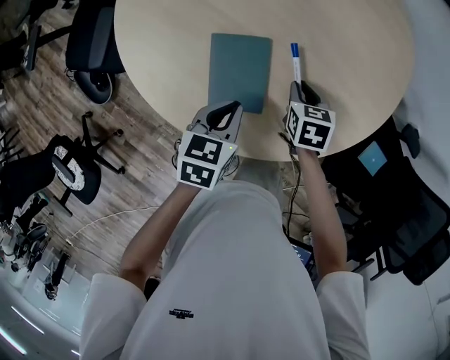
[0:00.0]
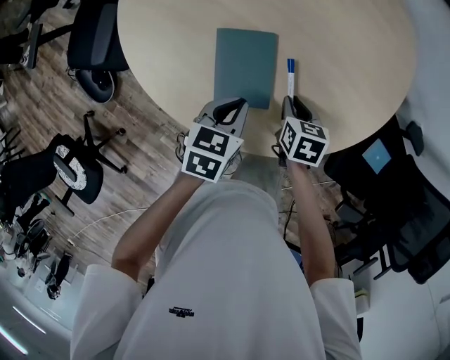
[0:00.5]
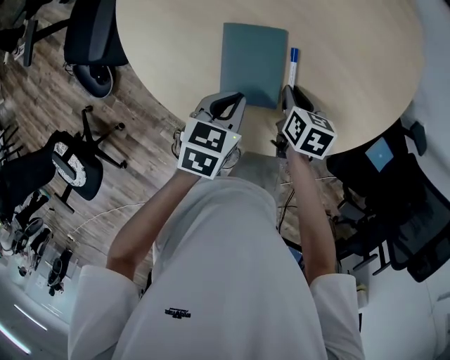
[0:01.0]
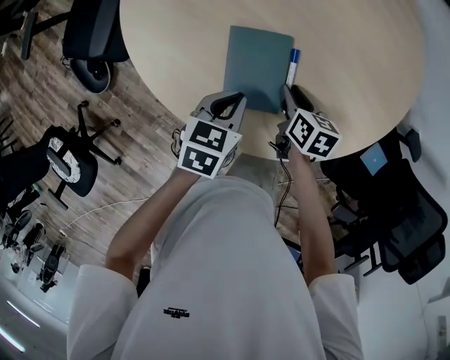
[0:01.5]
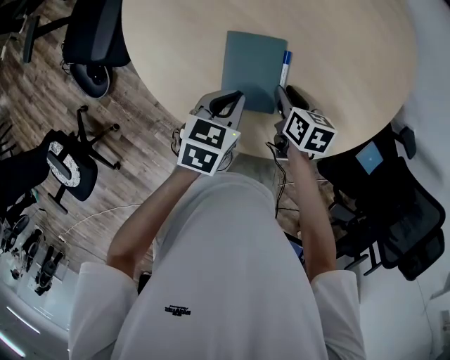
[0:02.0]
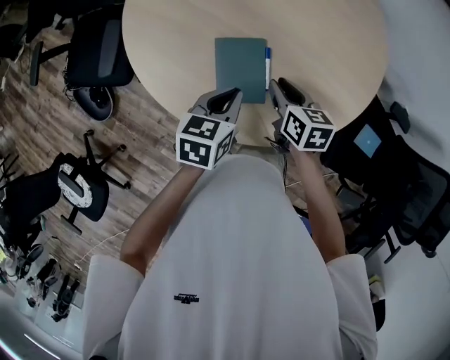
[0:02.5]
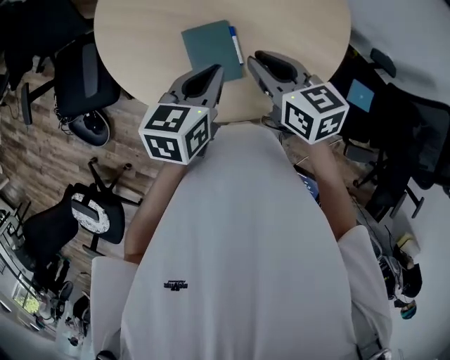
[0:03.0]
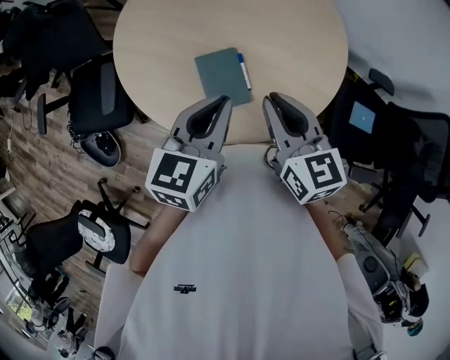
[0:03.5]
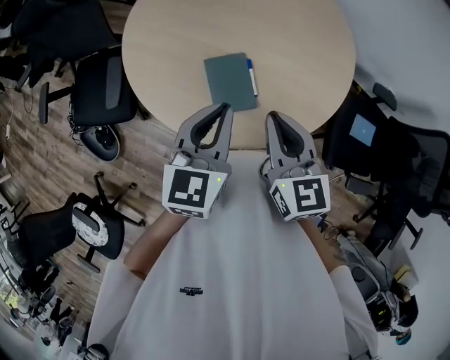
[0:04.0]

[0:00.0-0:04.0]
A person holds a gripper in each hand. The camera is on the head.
0:00.0 to 0:02.0: The right gripper travels to the left by some 10 cm, and swivels approximately 20 degrees. Meanwhile the left gripper heads to the left, covering roughly 5 cm.
0:02.0 to 0:04.0: The two grippers go about 35 cm upward. The right gripper tilts its fingers approximately 30 degrees upward. Meanwhile the left gripper rotates about 30 degrees.

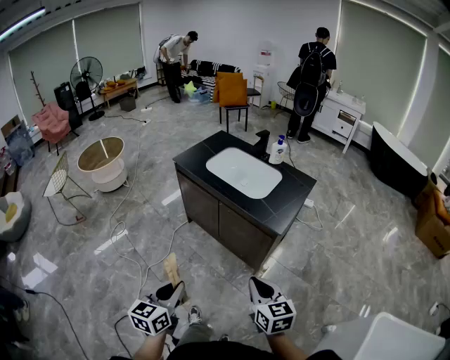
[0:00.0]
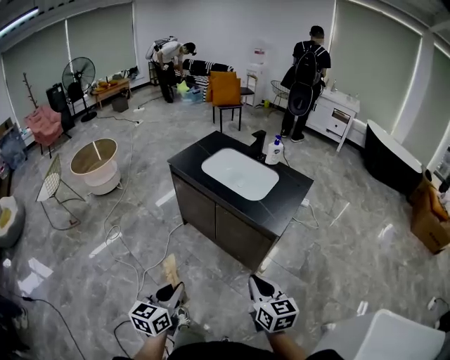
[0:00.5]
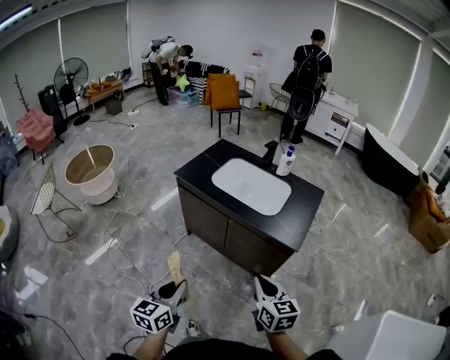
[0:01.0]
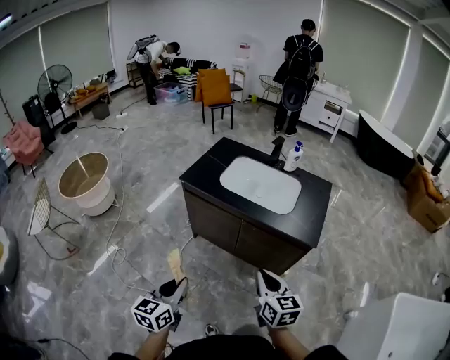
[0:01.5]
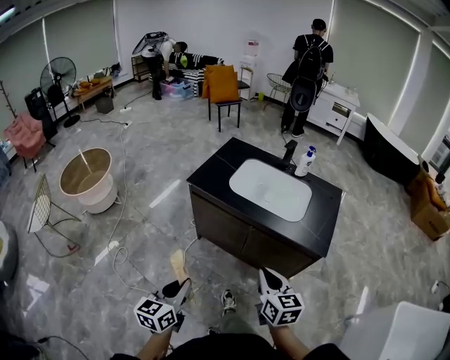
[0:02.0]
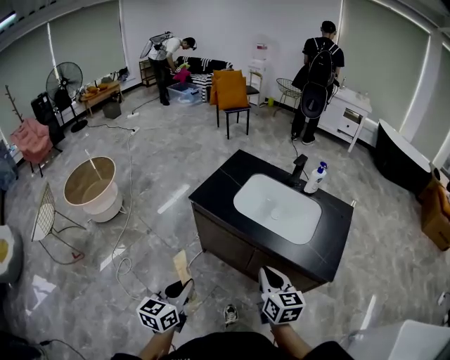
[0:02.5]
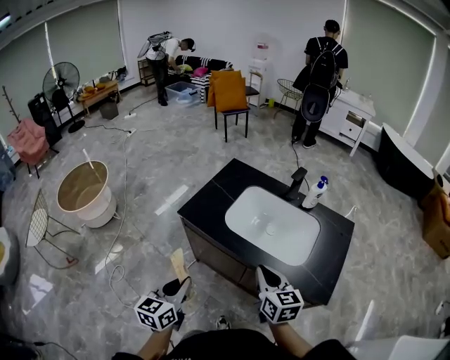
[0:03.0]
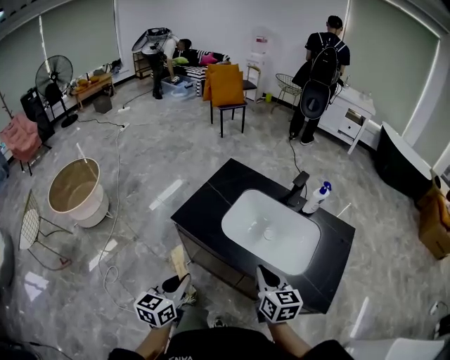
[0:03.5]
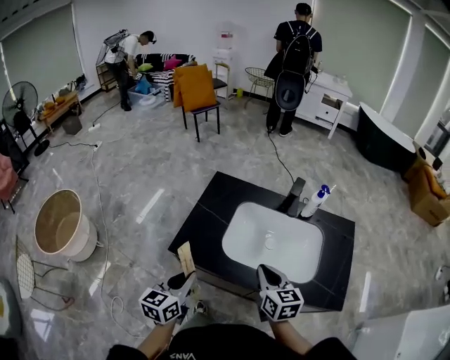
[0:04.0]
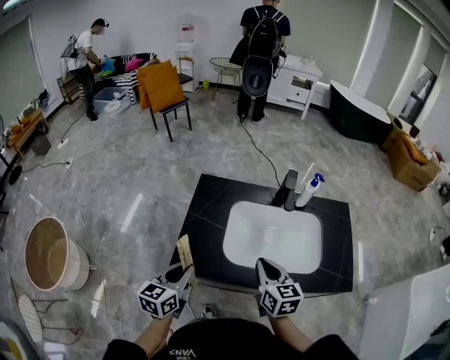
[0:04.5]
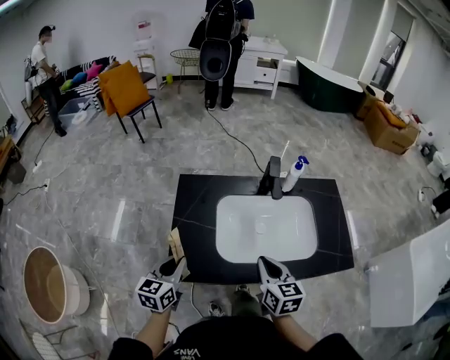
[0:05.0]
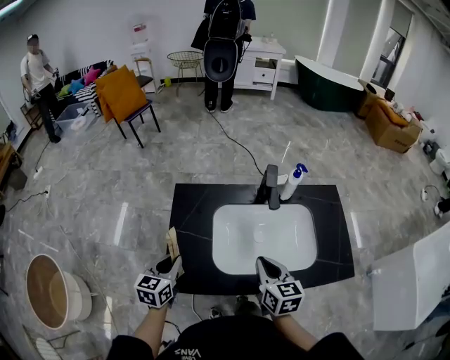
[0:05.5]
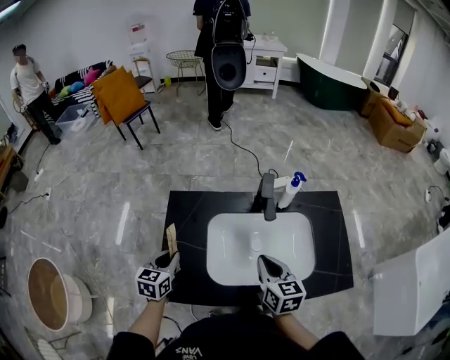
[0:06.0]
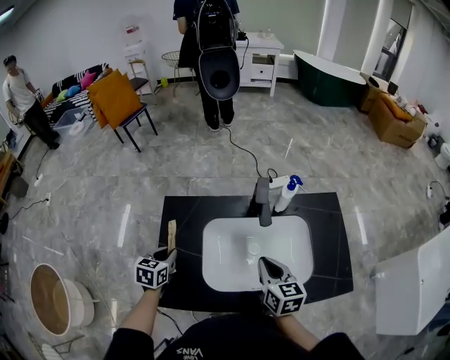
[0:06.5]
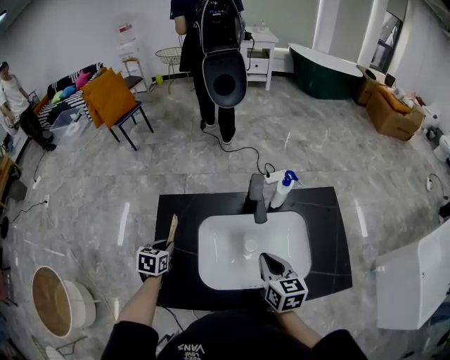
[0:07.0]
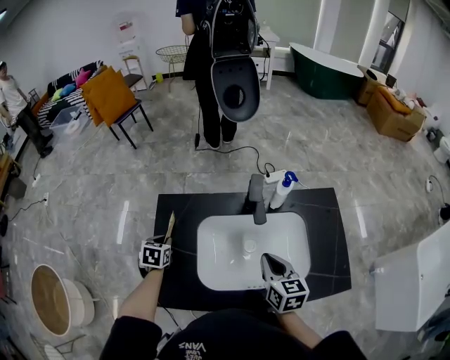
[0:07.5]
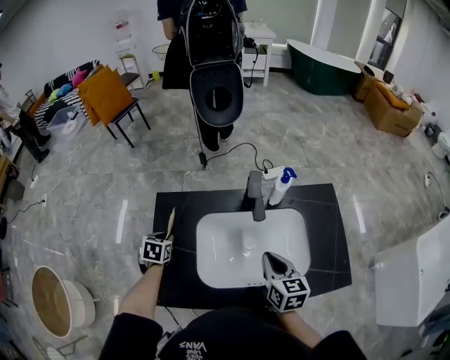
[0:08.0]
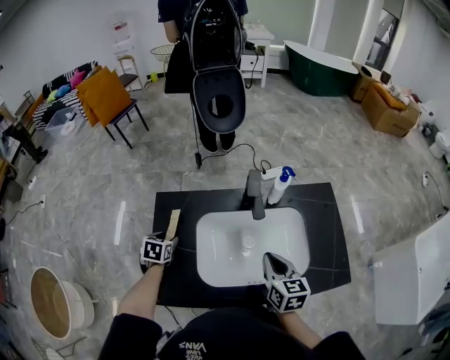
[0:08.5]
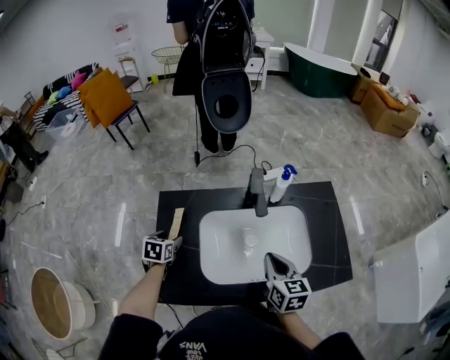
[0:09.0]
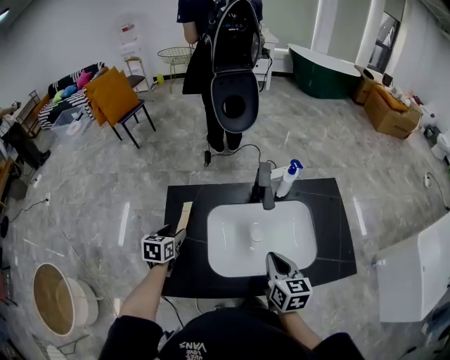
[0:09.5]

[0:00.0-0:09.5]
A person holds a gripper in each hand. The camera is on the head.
0:00.0 to 0:02.0: The two grippers go about 30 cm to the left and forward.
0:02.0 to 0:04.0: The two grippers go roughly 40 cm forward.
0:04.0 to 0:05.5: The left gripper is displaced forward and to the left by some 20 cm, and changes its angle by some 20 degrees; the right gripper travels forward by roughly 5 cm, and turns by some 20 degrees.
0:05.5 to 0:07.5: The left gripper is displaced forward and downward by some 20 cm, and turns by approximately 30 degrees. Meanwhile the right gripper shifts approximately 10 cm forward and to the right.
0:07.5 to 0:09.5: The left gripper opens, while the right gripper moves backward, some 5 cm.

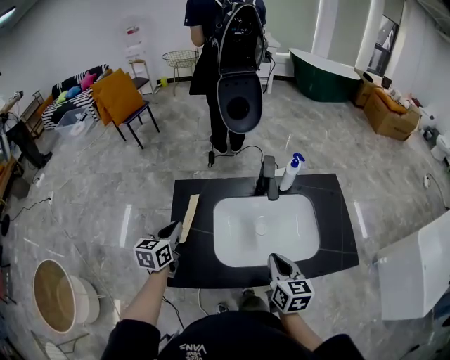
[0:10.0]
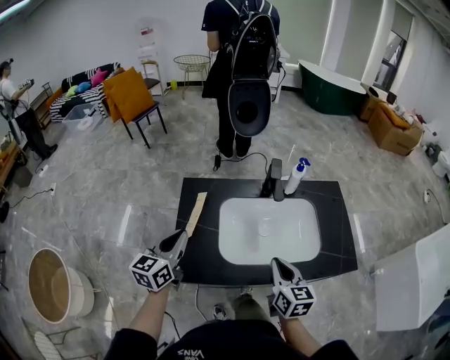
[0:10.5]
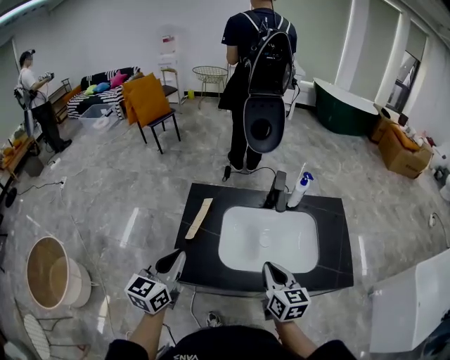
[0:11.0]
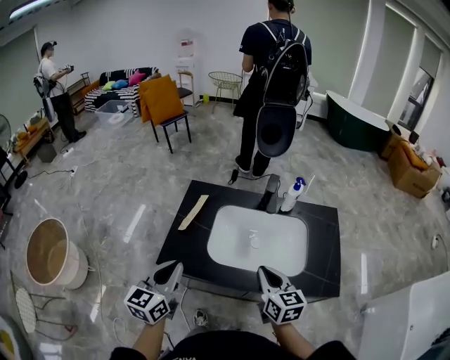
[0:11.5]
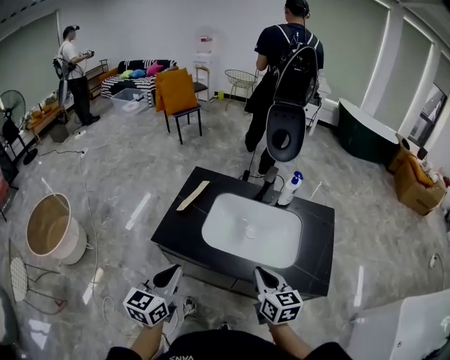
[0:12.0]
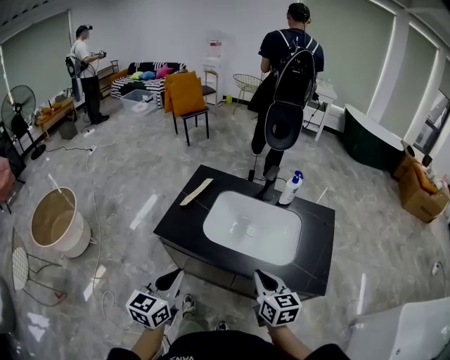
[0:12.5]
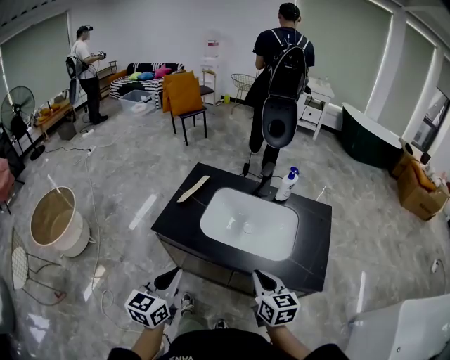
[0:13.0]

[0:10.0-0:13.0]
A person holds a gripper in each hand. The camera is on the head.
0:10.0 to 0:11.5: The right gripper ends up approximately 5 cm from where it was, and turns by roughly 20 degrees. The left gripper travels backward and upward by about 25 cm.
0:11.5 to 0:13.0: Both grippers move backward and to the right, about 15 cm.

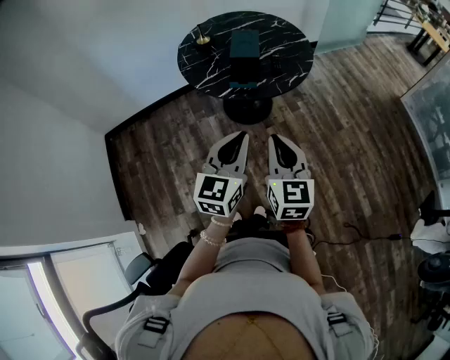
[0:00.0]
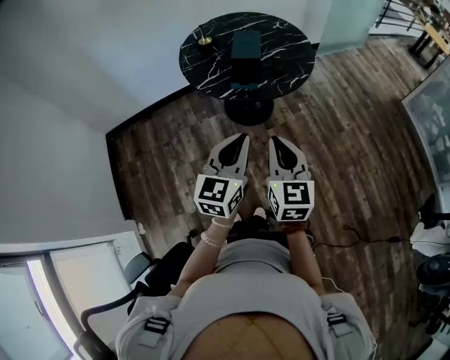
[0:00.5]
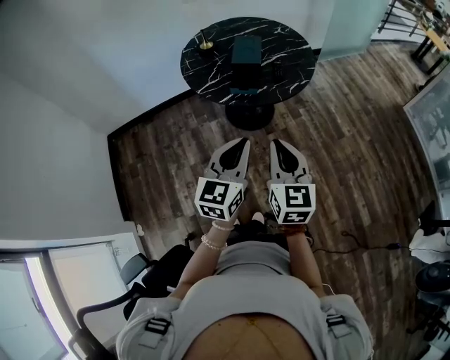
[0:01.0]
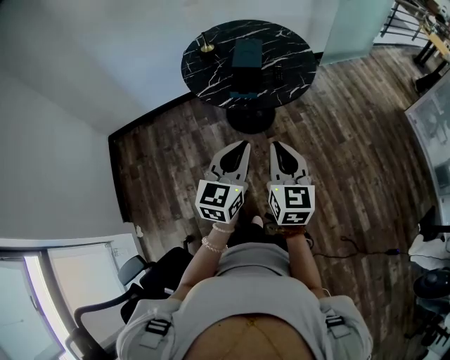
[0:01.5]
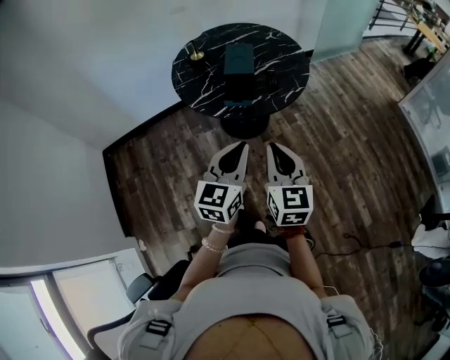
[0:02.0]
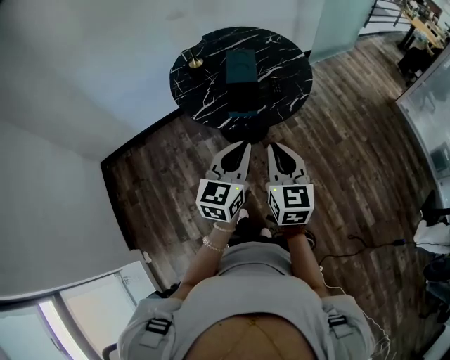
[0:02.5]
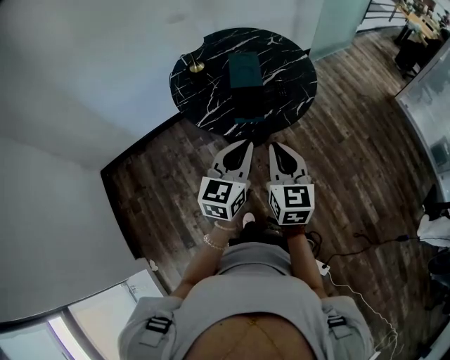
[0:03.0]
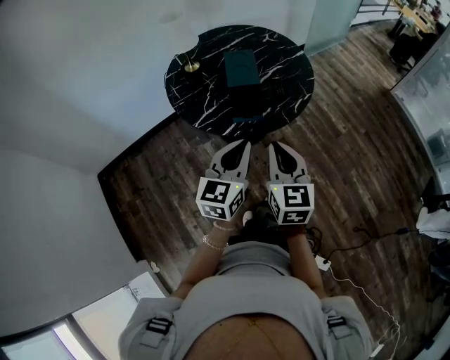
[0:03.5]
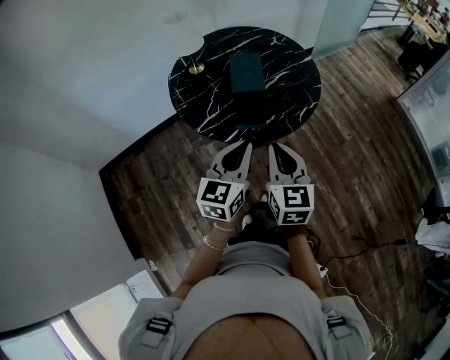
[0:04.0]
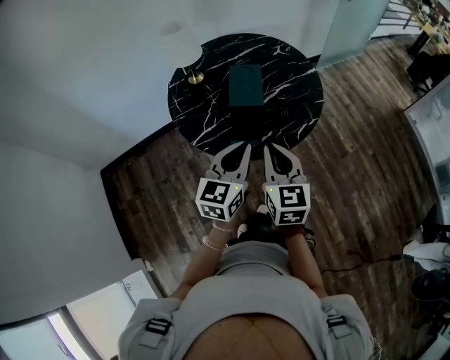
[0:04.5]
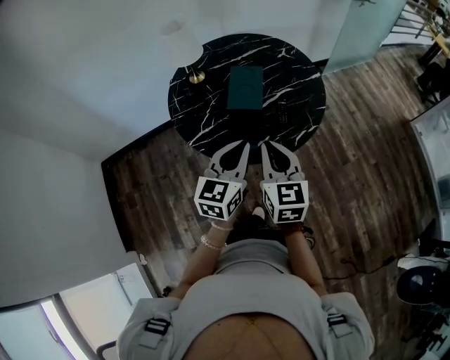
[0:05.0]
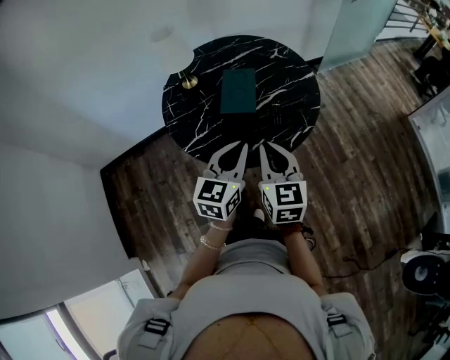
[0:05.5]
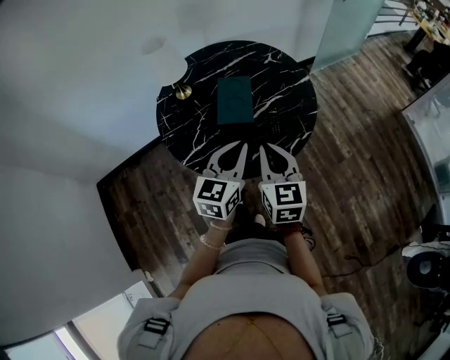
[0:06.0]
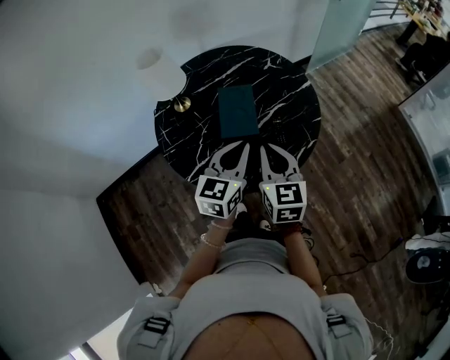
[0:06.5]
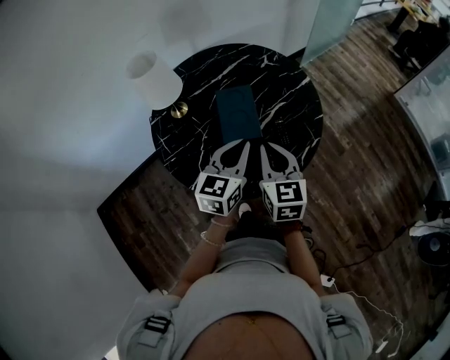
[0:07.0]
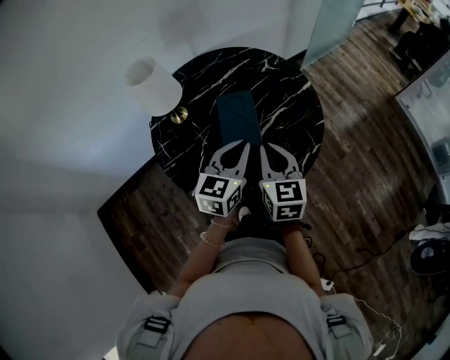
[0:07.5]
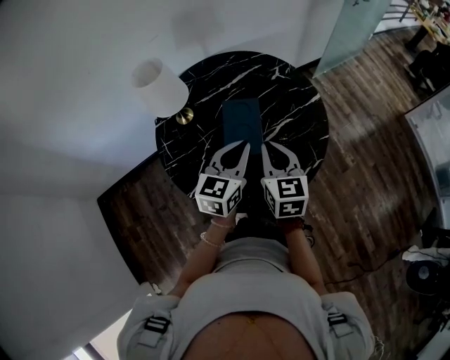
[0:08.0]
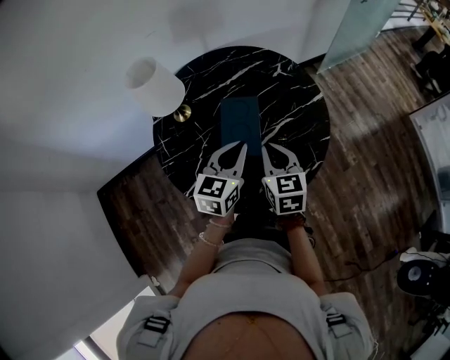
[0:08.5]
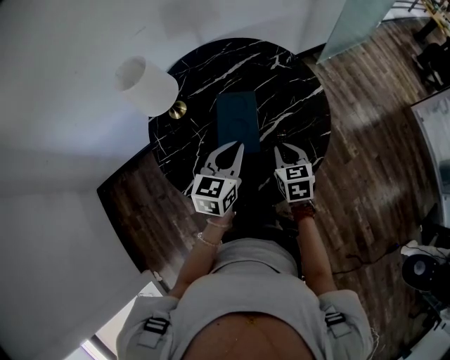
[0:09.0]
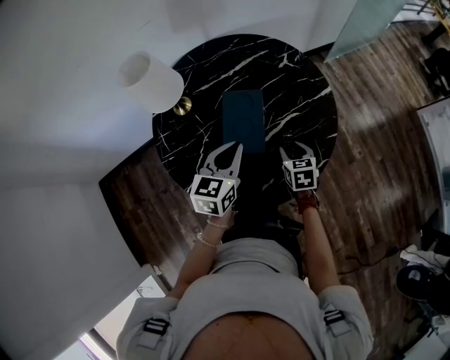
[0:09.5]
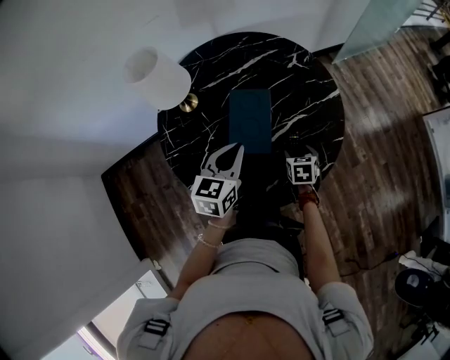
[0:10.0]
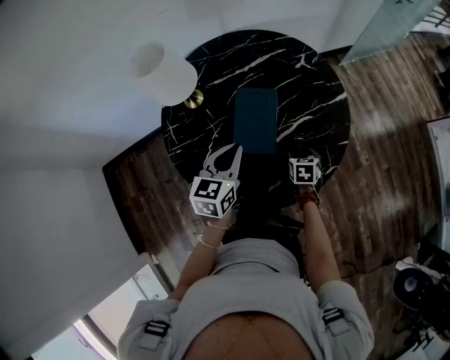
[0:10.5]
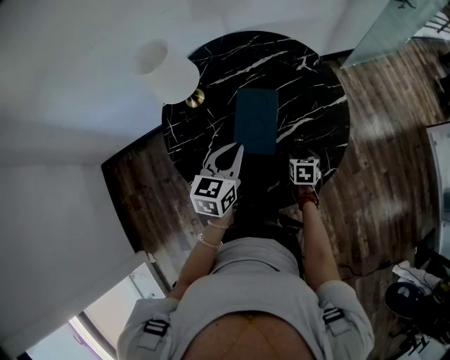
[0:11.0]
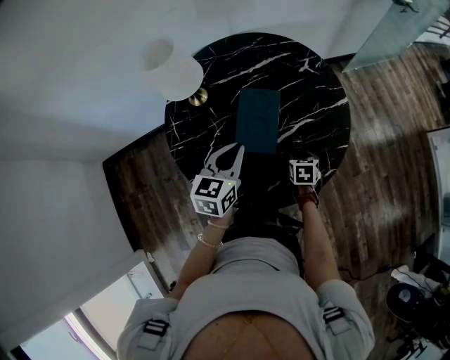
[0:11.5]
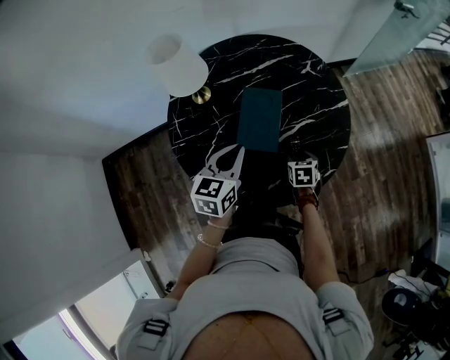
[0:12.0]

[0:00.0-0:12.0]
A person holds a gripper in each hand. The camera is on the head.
0:00.0 to 0:02.0: Both grippers move forward, some 5 cm.
0:02.0 to 0:04.0: The grippers both shift forward and to the left by roughly 15 cm.
0:04.0 to 0:06.0: The two grippers go some 15 cm forward.
0:06.0 to 0:08.0: The two grippers go about 15 cm forward.
0:08.0 to 0:10.0: The left gripper is displaced downward by about 5 cm. The right gripper shifts roughly 25 cm downward, points its fingers approximately 40 degrees further downward, and opens.
0:10.0 to 0:12.0: The grippers stay close to where they were, moving slightly.
